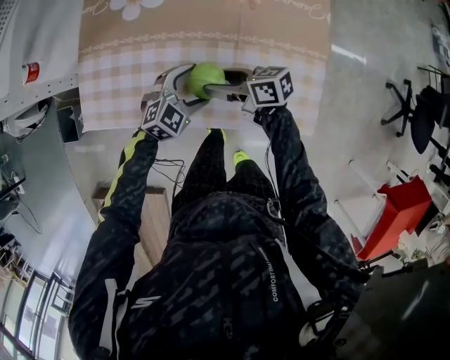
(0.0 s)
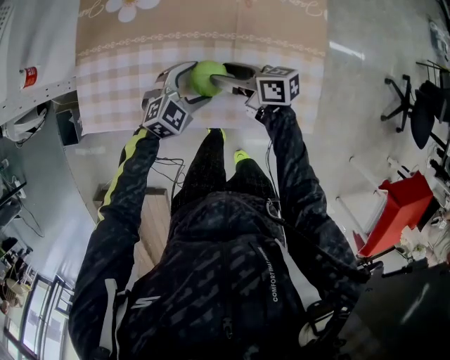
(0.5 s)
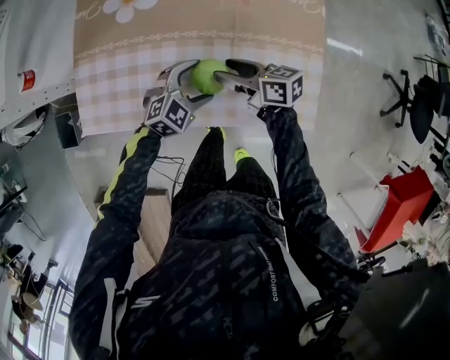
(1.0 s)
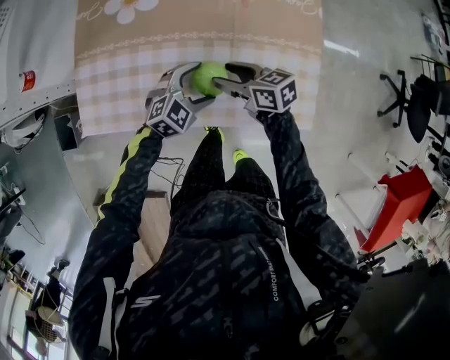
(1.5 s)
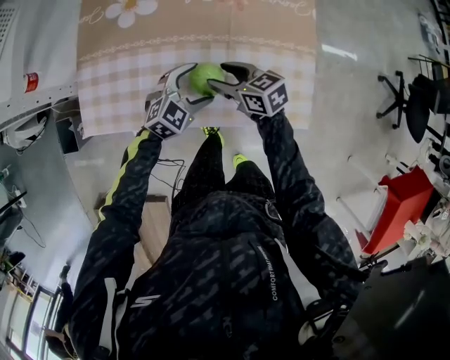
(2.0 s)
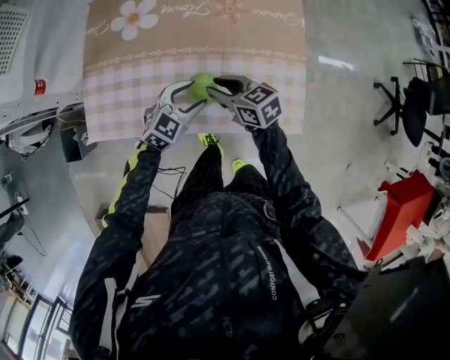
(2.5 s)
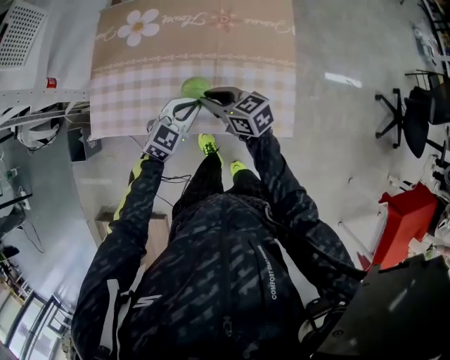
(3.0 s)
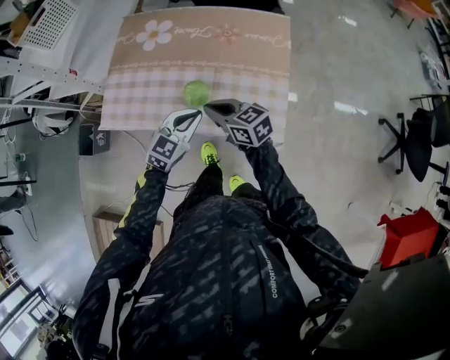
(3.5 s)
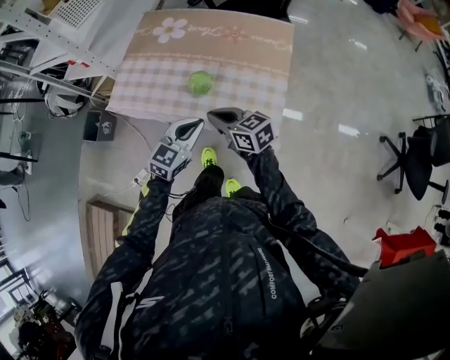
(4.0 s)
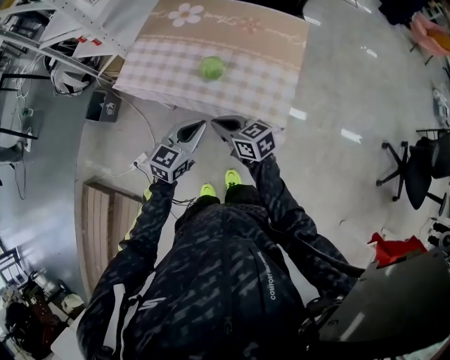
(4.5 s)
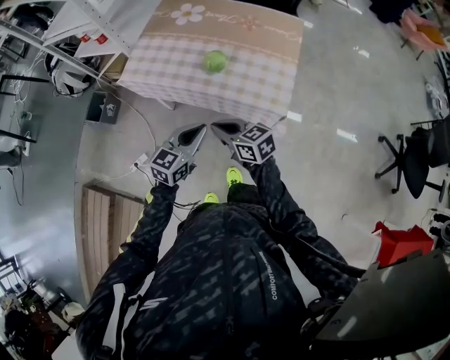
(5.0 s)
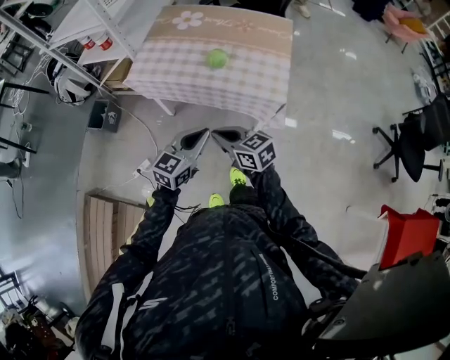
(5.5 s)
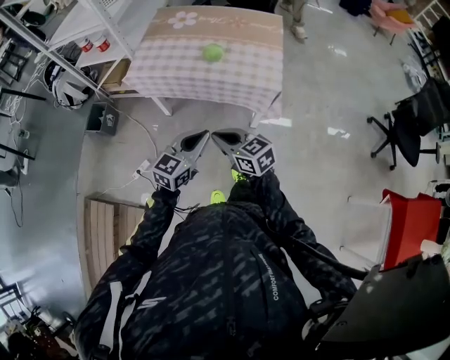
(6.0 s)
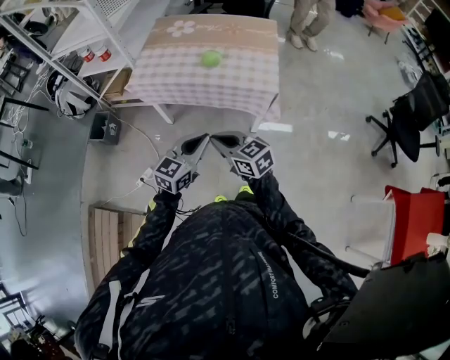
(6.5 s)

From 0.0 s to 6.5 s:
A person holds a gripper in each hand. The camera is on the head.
From 0.0 s to 2.0 s: The right gripper changes its angle by about 20 degrees.
From 2.0 s to 4.5 s: The two grippers go about 30 cm backward and upward. The right gripper closes. The left gripper rotates about 40 degrees, and closes its fingers.
From 4.5 s to 6.5 s: Both grippers move backward and to the left, roughly 25 cm.

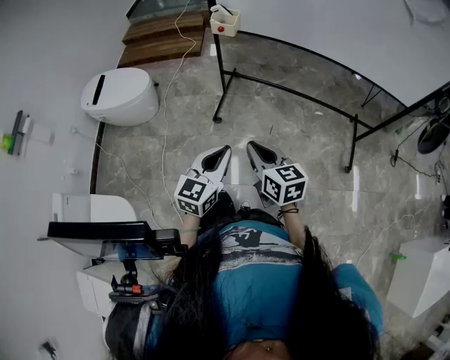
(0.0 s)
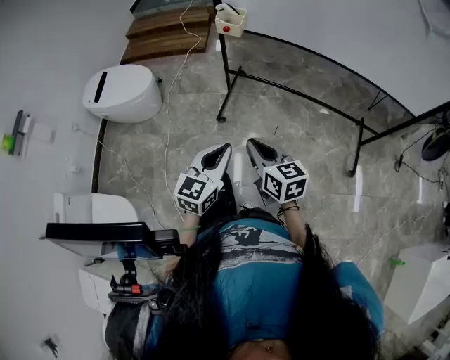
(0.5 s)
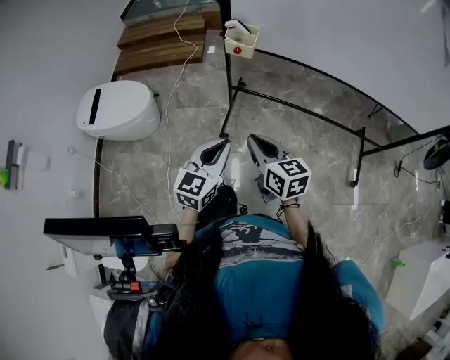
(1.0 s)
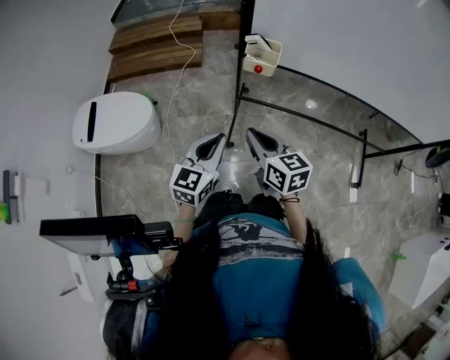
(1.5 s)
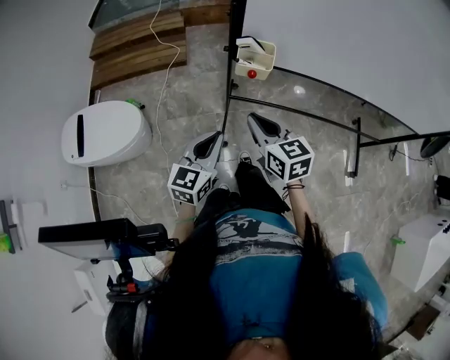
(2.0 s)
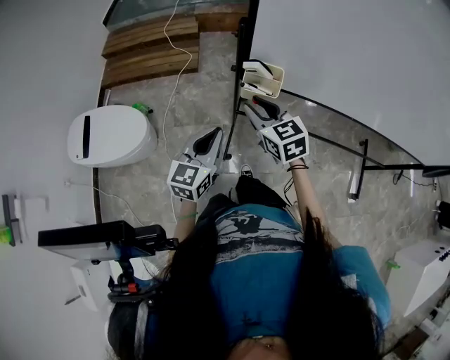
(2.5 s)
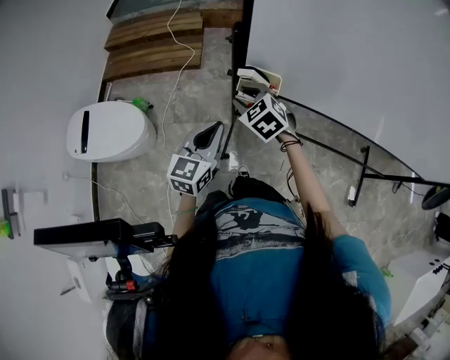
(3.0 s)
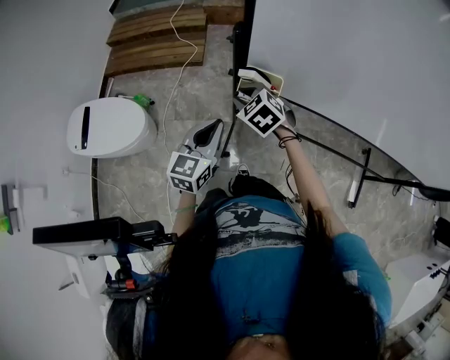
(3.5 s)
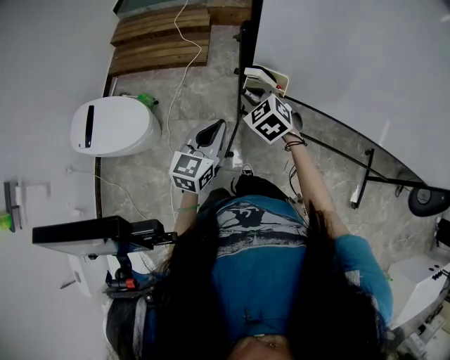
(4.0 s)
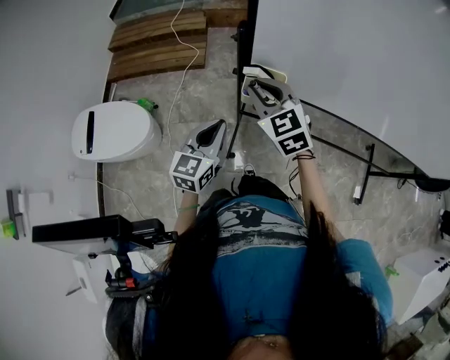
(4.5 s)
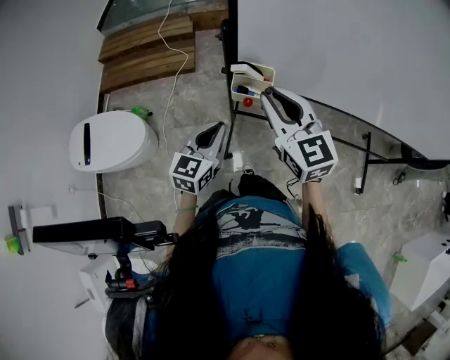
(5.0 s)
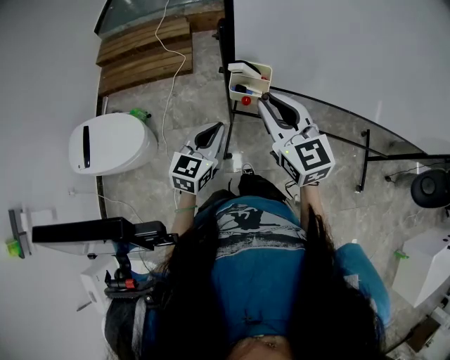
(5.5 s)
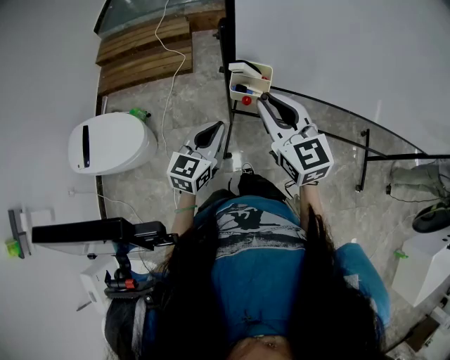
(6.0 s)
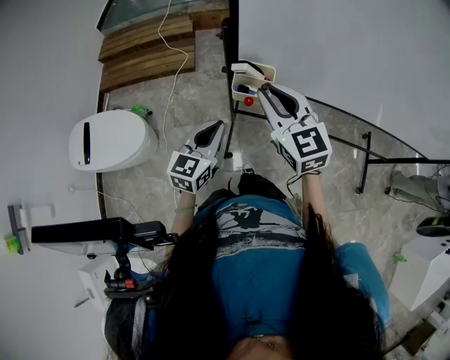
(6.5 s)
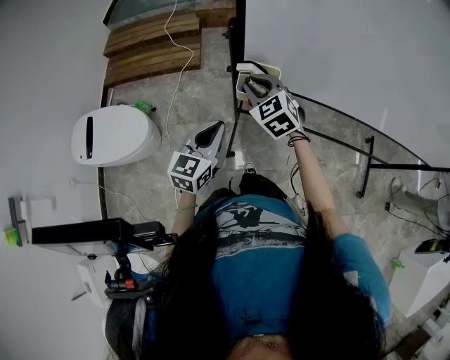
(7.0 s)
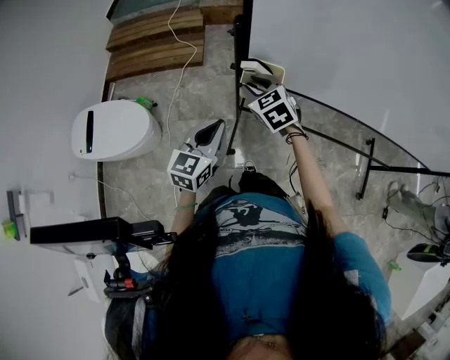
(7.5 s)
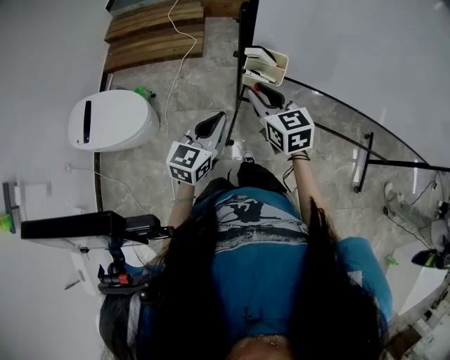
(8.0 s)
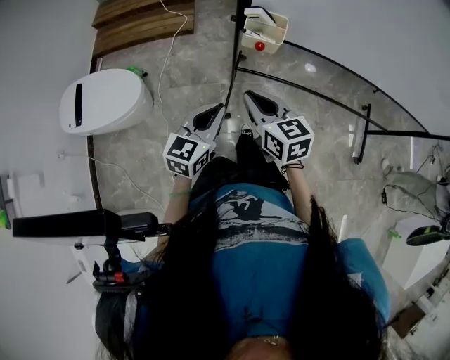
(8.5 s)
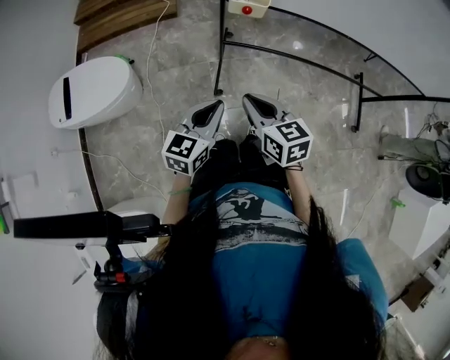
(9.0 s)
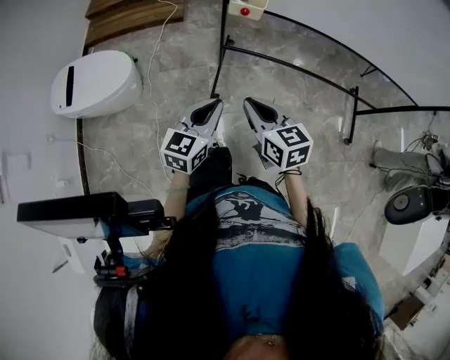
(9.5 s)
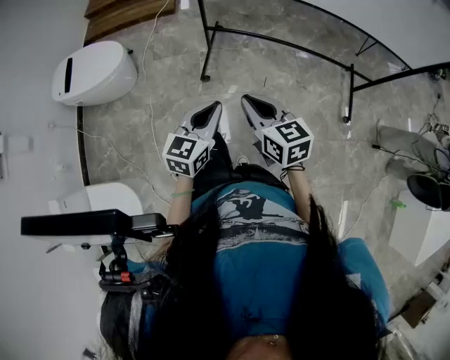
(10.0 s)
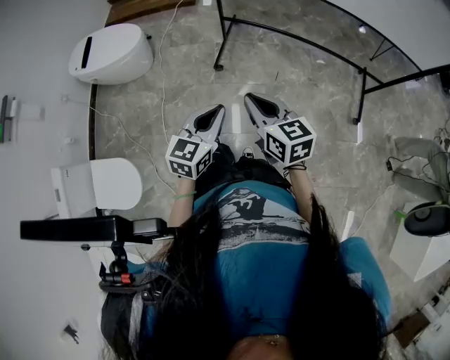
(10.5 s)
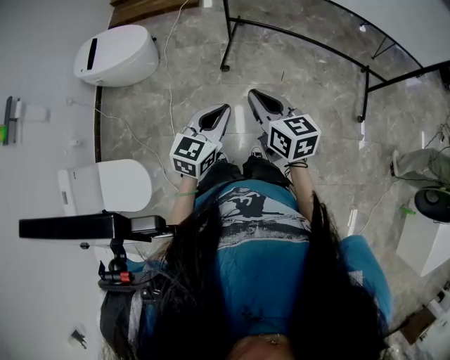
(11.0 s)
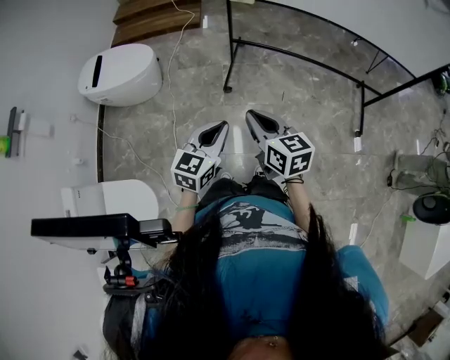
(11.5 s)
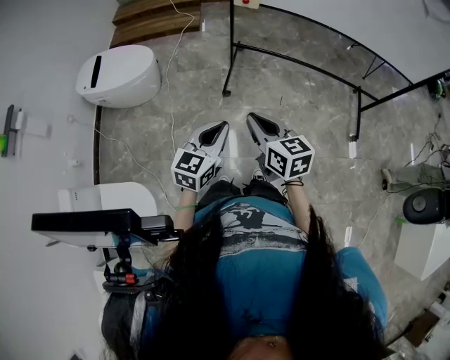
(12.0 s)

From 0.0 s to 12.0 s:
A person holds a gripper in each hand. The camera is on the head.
From 0.0 s to 2.0 s: Both grippers are carried forward and to the left, approximately 50 cm.
From 2.0 s to 4.0 s: The two grippers go about 20 cm forward. The right gripper rotates roughly 50 degrees.
From 4.0 s to 6.0 s: The right gripper moves upward, backward and to the right, some 20 cm, and angles its fingers upward, by some 30 degrees.
From 6.0 s to 8.0 s: The right gripper goes approximately 10 cm downward.
From 8.0 s to 10.0 s: The pair of grippers is taken backward, about 50 cm. The right gripper closes up.
From 10.0 s to 12.0 s: The two grippers go some 15 cm backward and to the left.

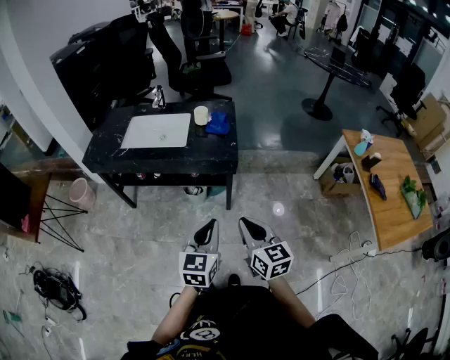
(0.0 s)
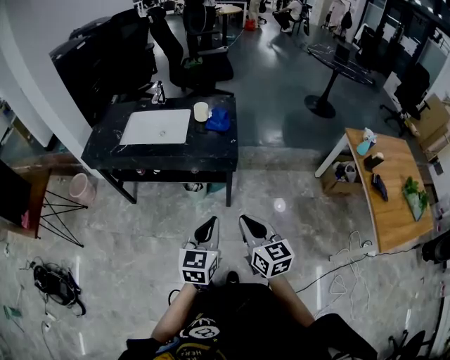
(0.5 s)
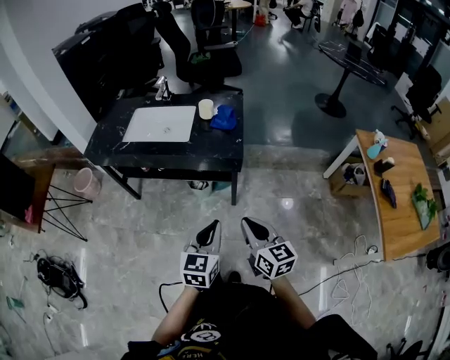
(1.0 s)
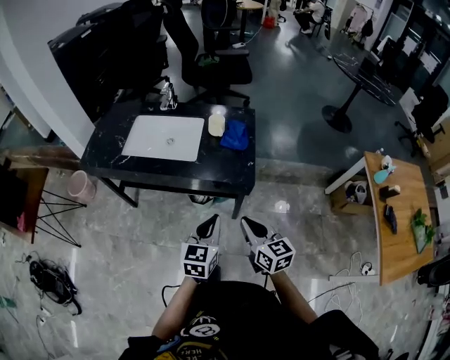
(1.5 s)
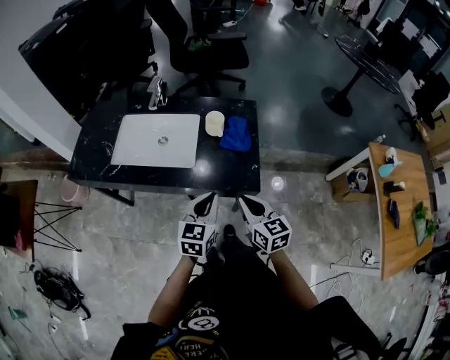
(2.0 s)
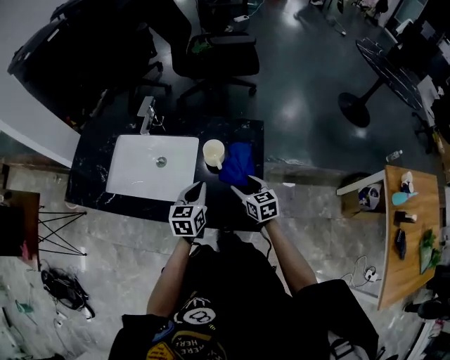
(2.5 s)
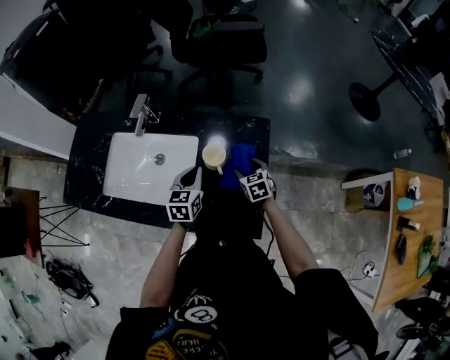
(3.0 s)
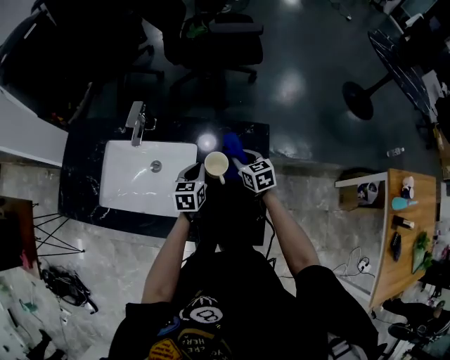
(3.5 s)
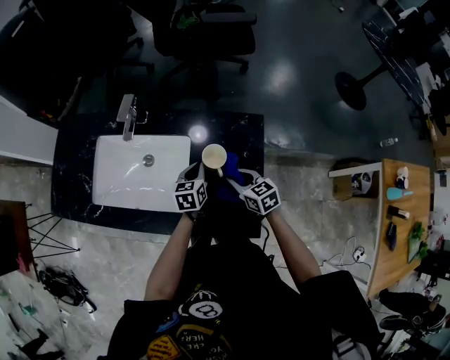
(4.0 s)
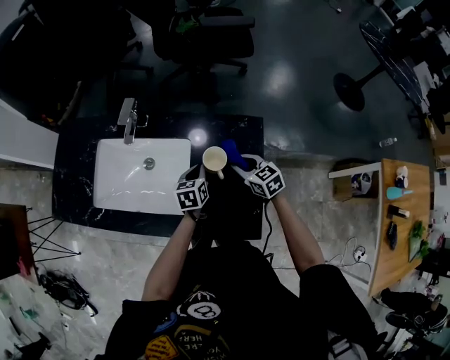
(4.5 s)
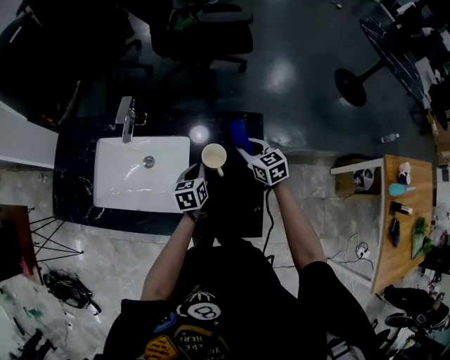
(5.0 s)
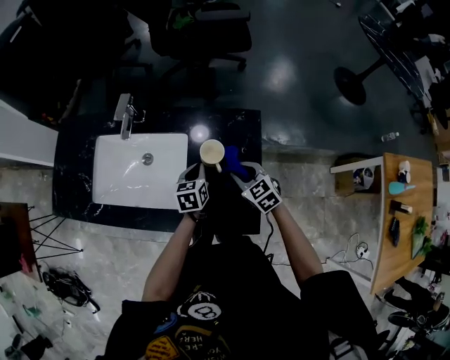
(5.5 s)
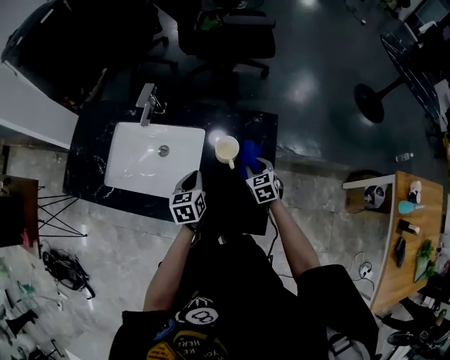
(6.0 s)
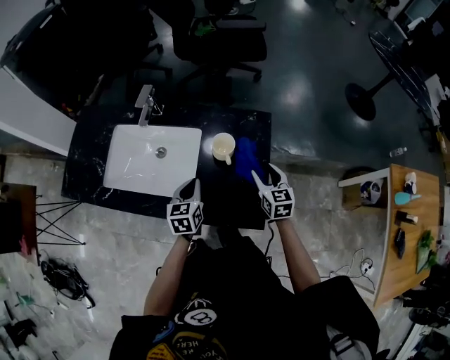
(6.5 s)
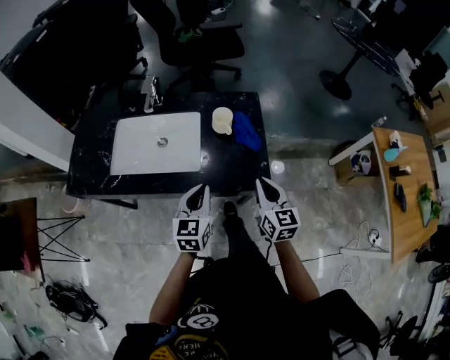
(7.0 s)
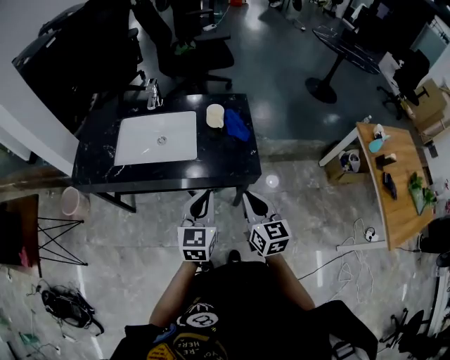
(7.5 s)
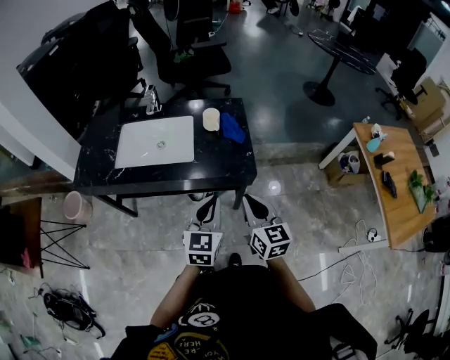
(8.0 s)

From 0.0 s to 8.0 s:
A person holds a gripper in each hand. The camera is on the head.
From 0.0 s to 2.0 s: Both grippers move forward, some 35 cm.
From 2.0 s to 4.0 s: Both grippers travel together forward and downward, approximately 35 cm. The right gripper rotates about 20 degrees, and opens, then closes again. The left gripper swivels approximately 20 degrees.
From 4.0 s to 6.0 s: The right gripper goes forward and returns, some 10 cm each way, and turns by roughly 20 degrees. The left gripper moves backward and to the left, some 10 cm.
From 6.0 s to 8.0 s: Both grippers travel together backward and upward, roughly 50 cm. The left gripper turns by roughly 40 degrees. The right gripper points its fingers about 30 degrees further upward, and opens and closes again.
